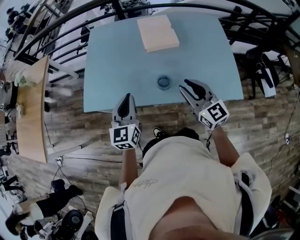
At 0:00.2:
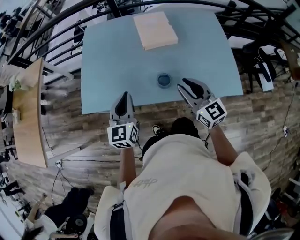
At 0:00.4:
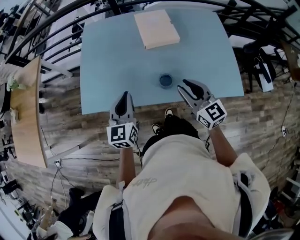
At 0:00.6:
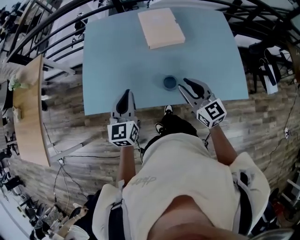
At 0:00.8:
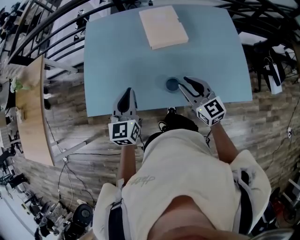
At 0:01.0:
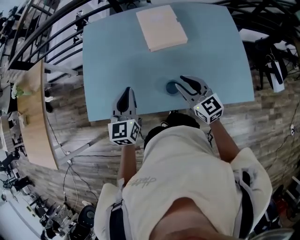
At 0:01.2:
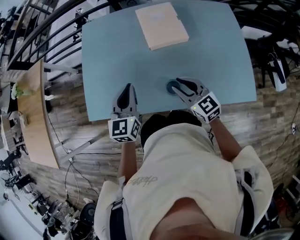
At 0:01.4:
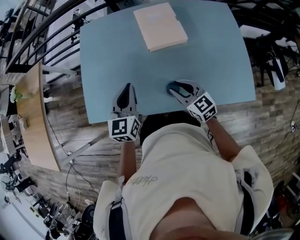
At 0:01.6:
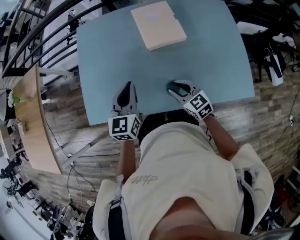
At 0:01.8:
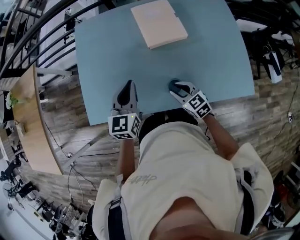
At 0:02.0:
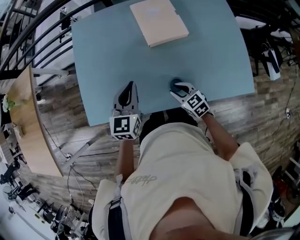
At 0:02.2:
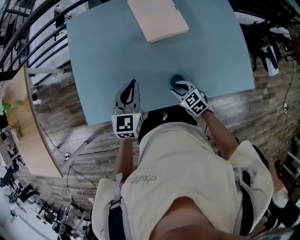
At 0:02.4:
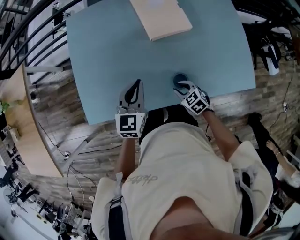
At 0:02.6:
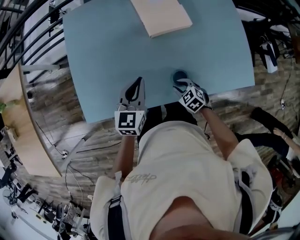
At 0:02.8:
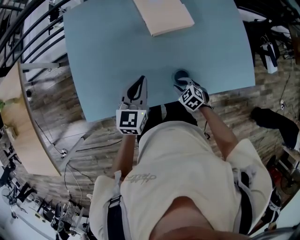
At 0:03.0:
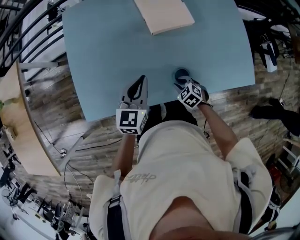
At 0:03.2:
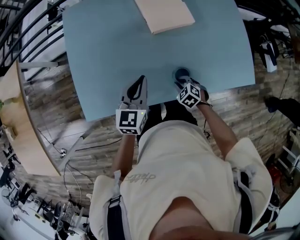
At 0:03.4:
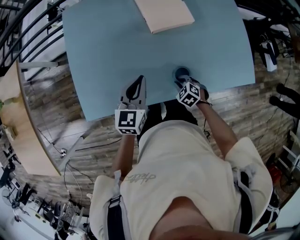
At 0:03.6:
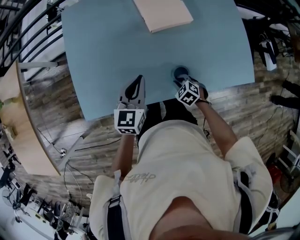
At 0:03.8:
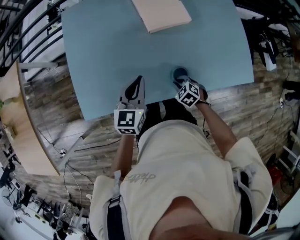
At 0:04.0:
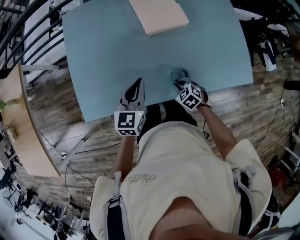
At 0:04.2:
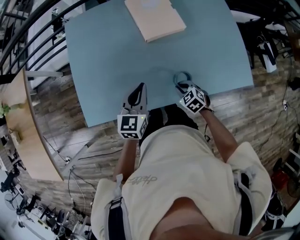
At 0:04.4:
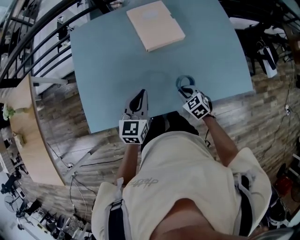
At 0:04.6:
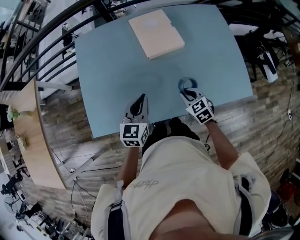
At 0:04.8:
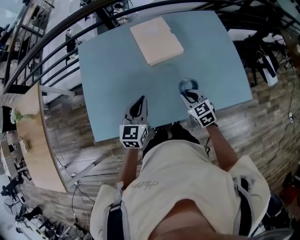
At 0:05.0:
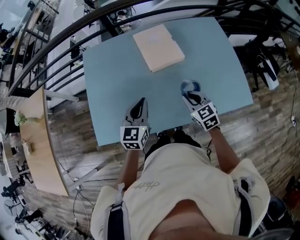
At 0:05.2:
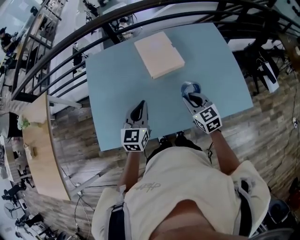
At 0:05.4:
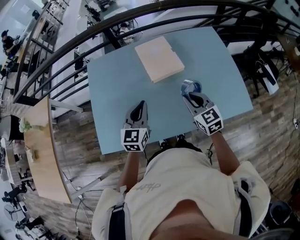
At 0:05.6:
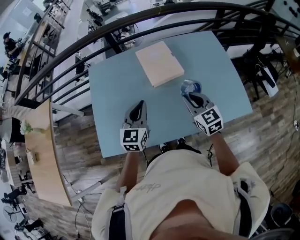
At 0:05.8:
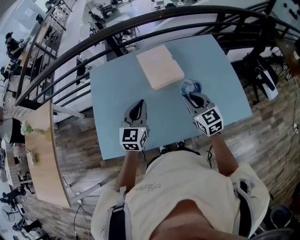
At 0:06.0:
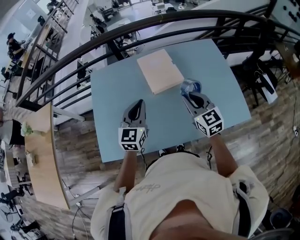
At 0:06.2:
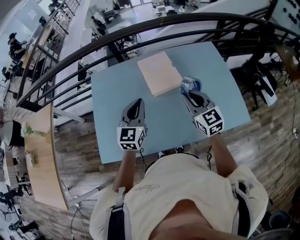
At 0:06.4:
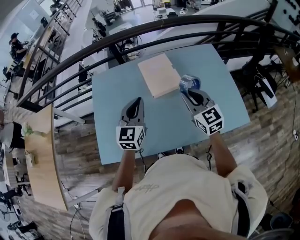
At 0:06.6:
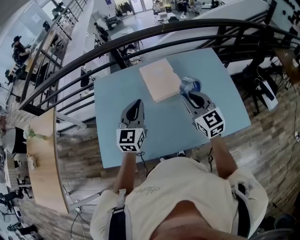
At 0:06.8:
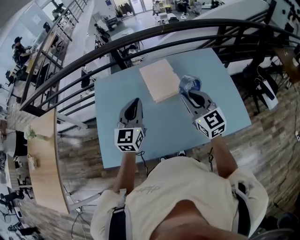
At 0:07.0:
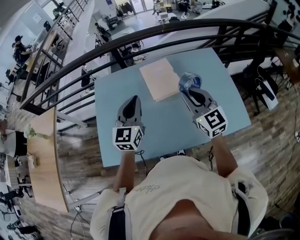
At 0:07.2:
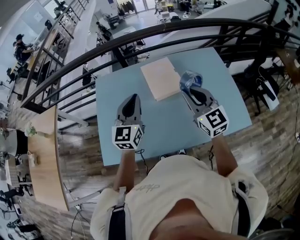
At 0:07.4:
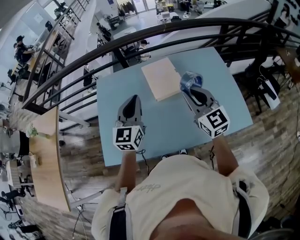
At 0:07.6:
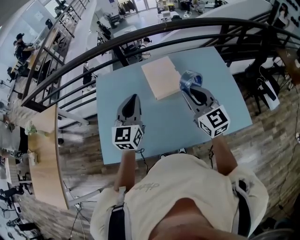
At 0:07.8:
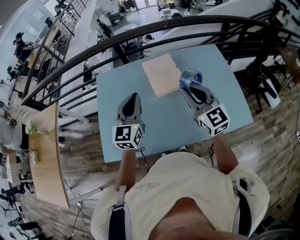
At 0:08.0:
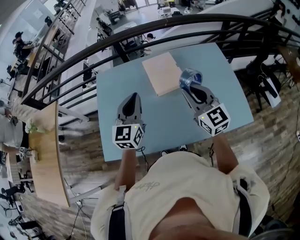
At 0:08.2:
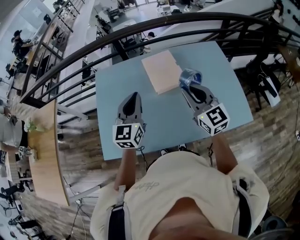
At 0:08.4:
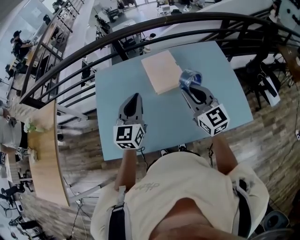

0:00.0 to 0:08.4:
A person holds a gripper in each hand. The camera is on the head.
0:00.0 to 0:01.4: The left gripper heads forward, covering approximately 15 cm. Meanwhile the right gripper shifts about 20 cm downward and forward.
0:01.4 to 0:02.8: The right gripper shifts some 20 cm downward, and angles its fingers downward, by approximately 40 degrees. The left gripper heads downward, covering some 5 cm.
0:02.8 to 0:04.2: The grippers make only small movements.
0:04.2 to 0:05.6: The right gripper goes about 25 cm upward, and tilts its fingers about 40 degrees upward, while the left gripper goes approximately 10 cm upward.
0:05.6 to 0:07.0: The grippers both shift upward by roughly 10 cm.
0:07.0 to 0:08.4: The grippers move only a little.

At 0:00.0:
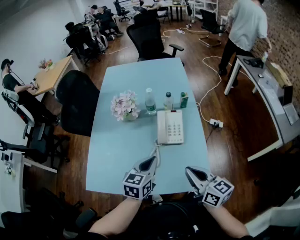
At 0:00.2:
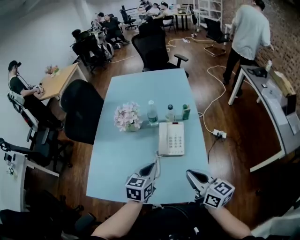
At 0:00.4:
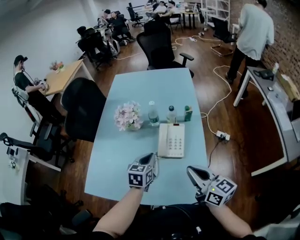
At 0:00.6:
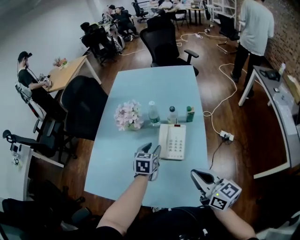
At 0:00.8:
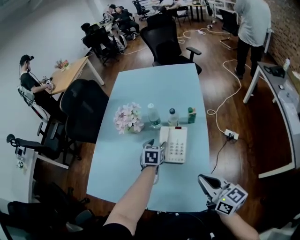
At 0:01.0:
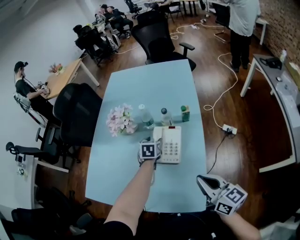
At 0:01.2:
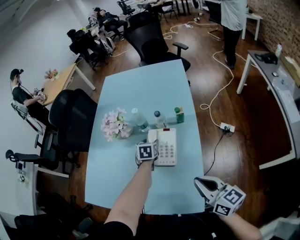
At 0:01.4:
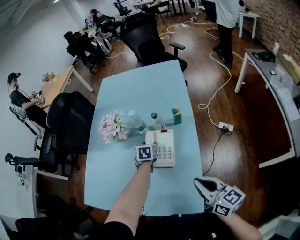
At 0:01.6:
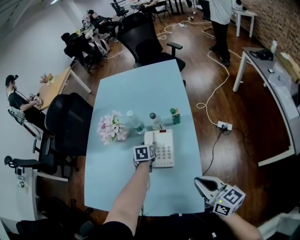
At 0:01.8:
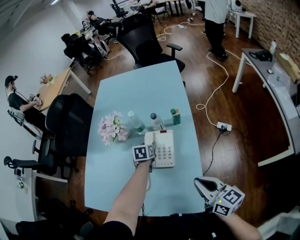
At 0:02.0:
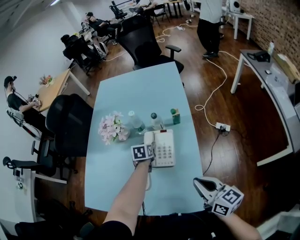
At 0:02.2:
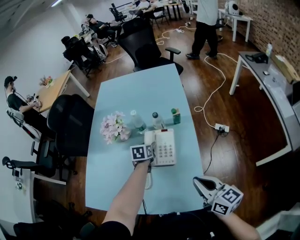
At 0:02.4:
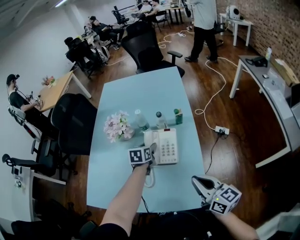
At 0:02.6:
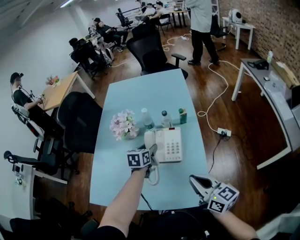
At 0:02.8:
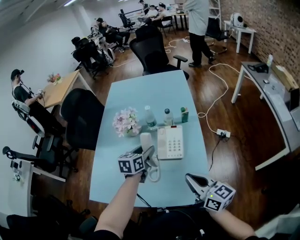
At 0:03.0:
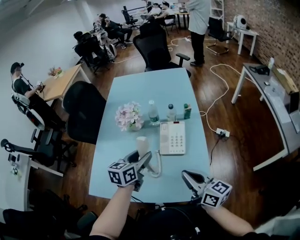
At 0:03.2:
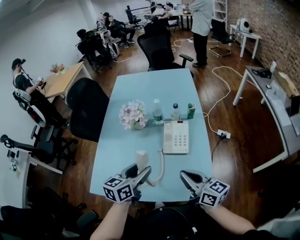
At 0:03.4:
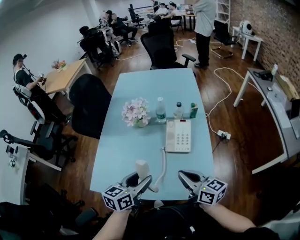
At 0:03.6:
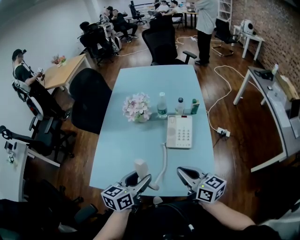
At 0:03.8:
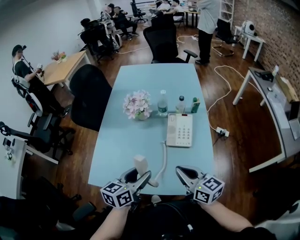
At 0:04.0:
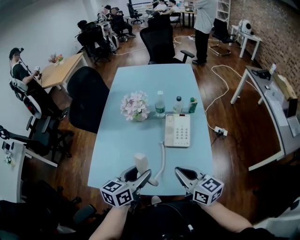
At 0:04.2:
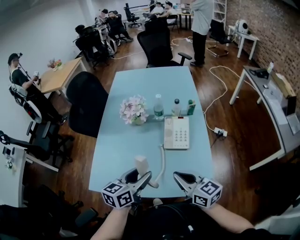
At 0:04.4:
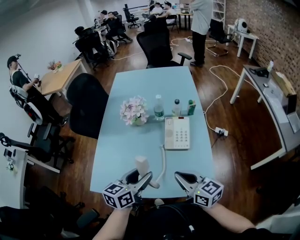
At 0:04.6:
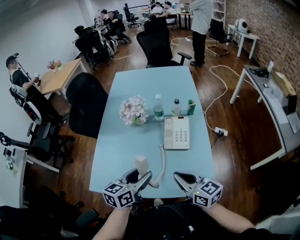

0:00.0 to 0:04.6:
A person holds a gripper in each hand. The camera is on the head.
0:00.0 to 0:01.6: The left gripper heads forward, downward and to the right, covering roughly 30 cm, changes its angle by roughly 30 degrees, and opens up, while the right gripper shifts roughly 15 cm to the right.
0:01.6 to 0:03.0: The left gripper travels upward, backward and to the left by roughly 30 cm, and rotates some 30 degrees, while the right gripper shifts roughly 15 cm to the left.
0:03.0 to 0:04.6: The left gripper travels backward by approximately 10 cm. The right gripper shifts some 10 cm to the left.

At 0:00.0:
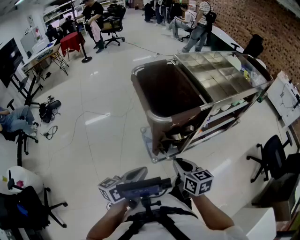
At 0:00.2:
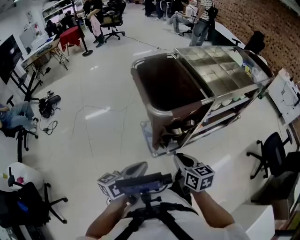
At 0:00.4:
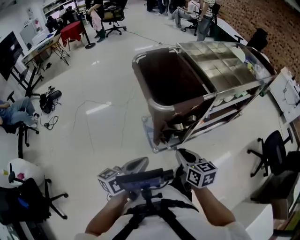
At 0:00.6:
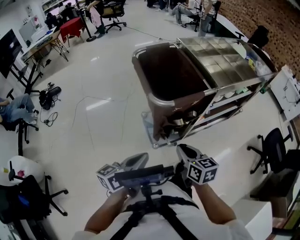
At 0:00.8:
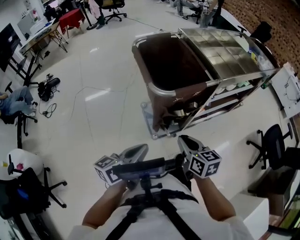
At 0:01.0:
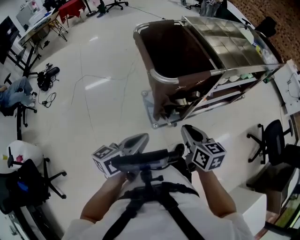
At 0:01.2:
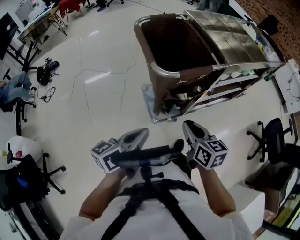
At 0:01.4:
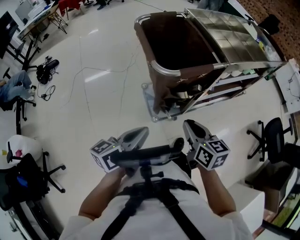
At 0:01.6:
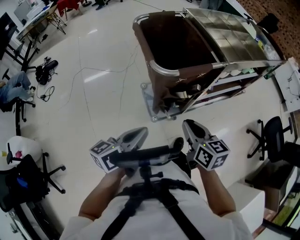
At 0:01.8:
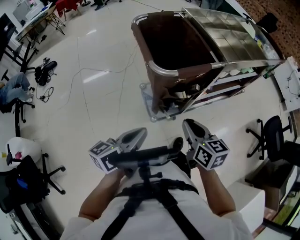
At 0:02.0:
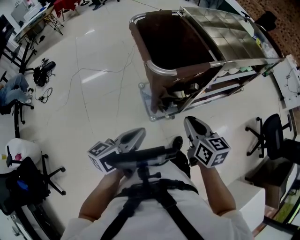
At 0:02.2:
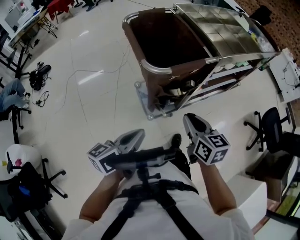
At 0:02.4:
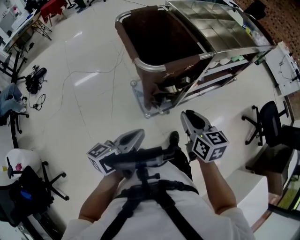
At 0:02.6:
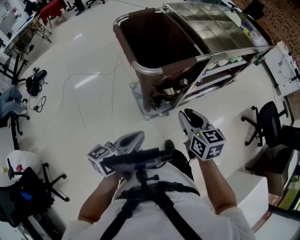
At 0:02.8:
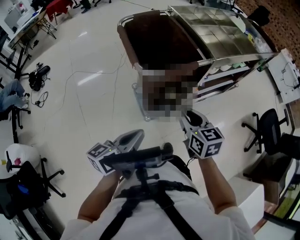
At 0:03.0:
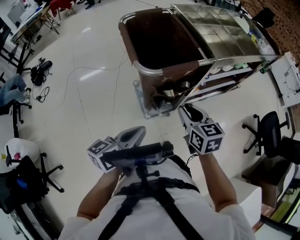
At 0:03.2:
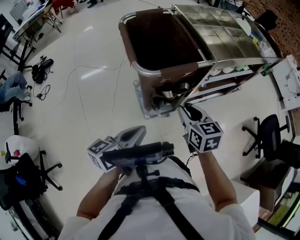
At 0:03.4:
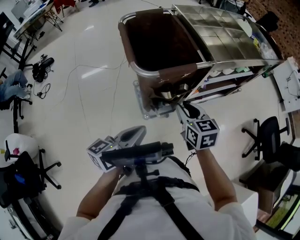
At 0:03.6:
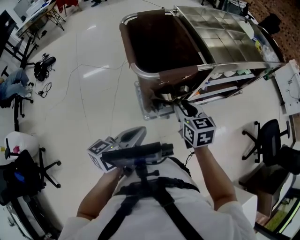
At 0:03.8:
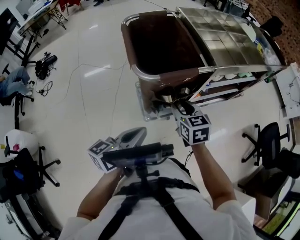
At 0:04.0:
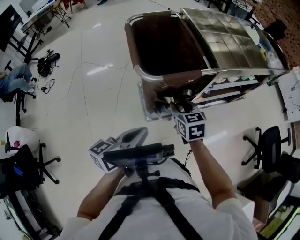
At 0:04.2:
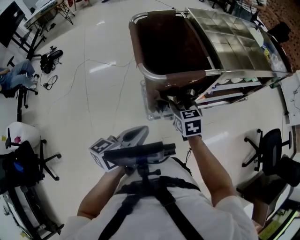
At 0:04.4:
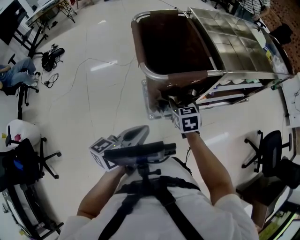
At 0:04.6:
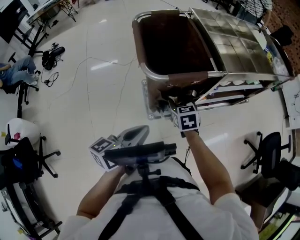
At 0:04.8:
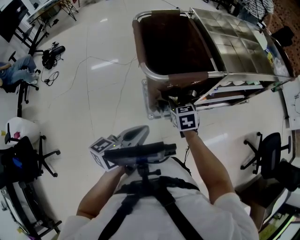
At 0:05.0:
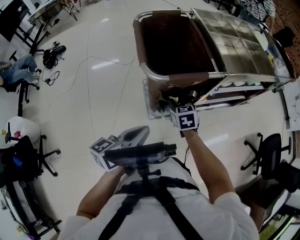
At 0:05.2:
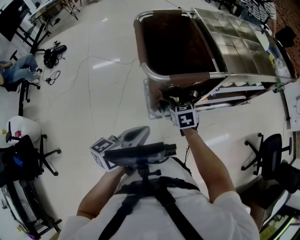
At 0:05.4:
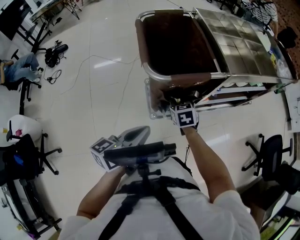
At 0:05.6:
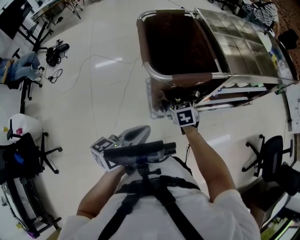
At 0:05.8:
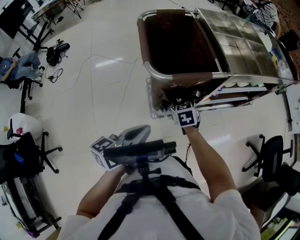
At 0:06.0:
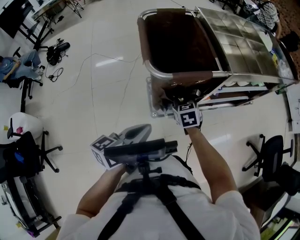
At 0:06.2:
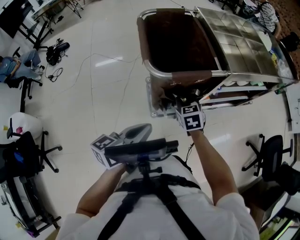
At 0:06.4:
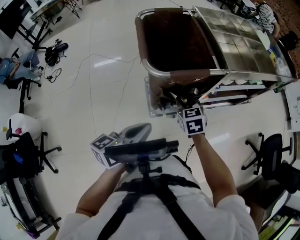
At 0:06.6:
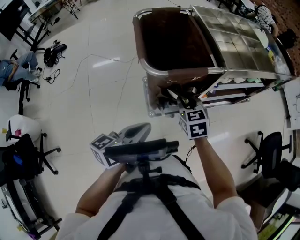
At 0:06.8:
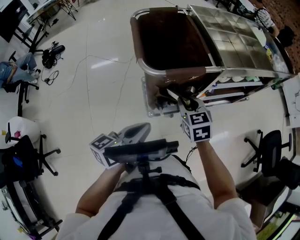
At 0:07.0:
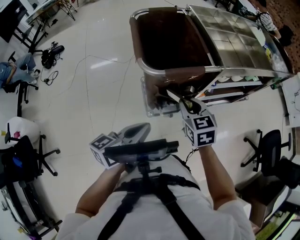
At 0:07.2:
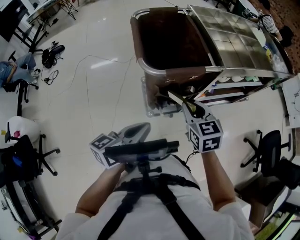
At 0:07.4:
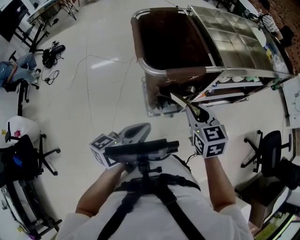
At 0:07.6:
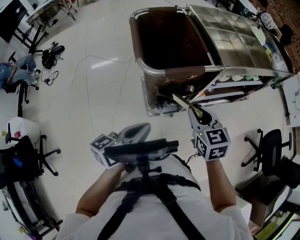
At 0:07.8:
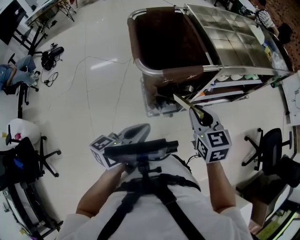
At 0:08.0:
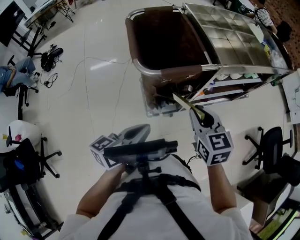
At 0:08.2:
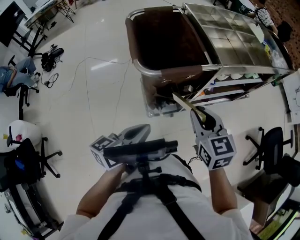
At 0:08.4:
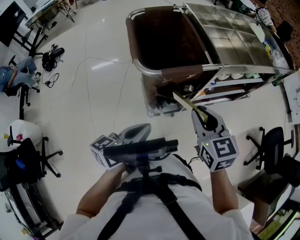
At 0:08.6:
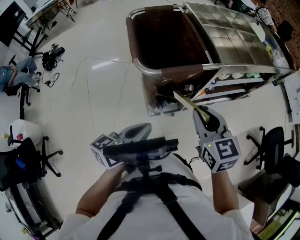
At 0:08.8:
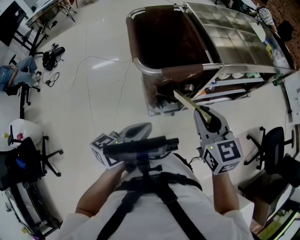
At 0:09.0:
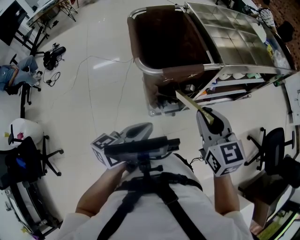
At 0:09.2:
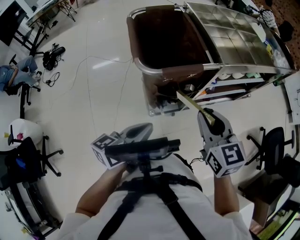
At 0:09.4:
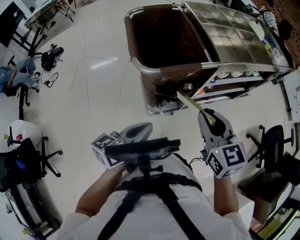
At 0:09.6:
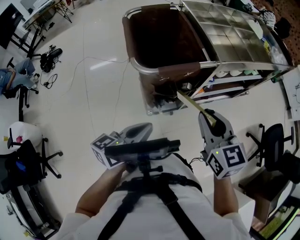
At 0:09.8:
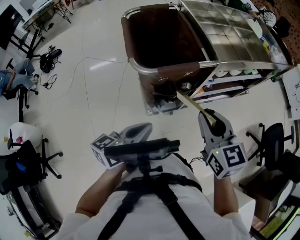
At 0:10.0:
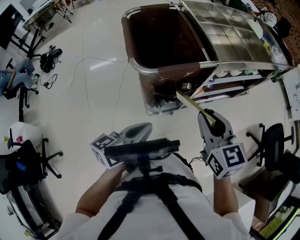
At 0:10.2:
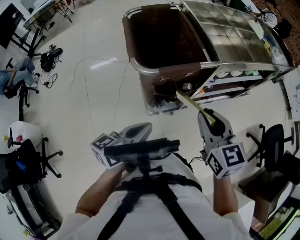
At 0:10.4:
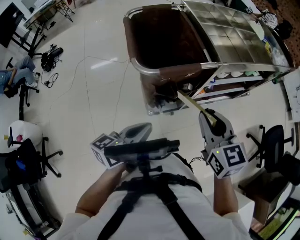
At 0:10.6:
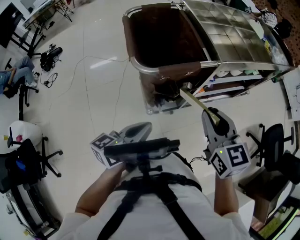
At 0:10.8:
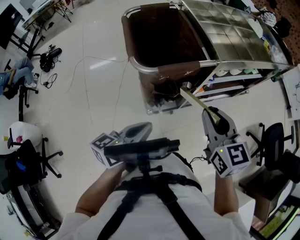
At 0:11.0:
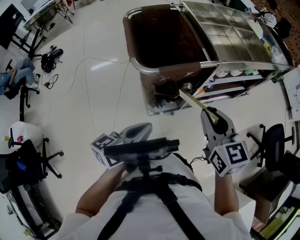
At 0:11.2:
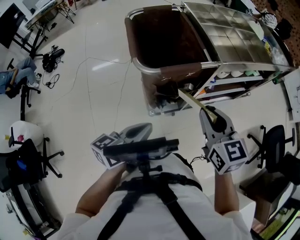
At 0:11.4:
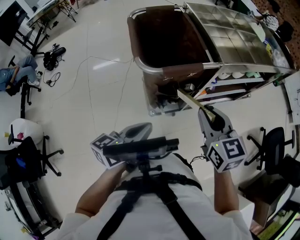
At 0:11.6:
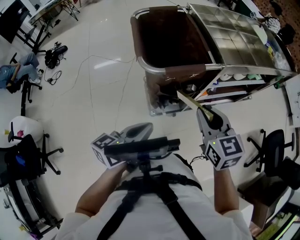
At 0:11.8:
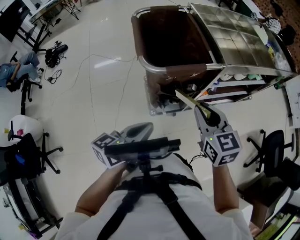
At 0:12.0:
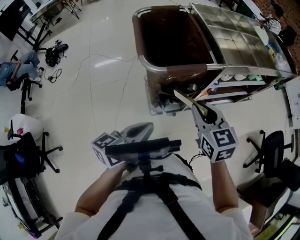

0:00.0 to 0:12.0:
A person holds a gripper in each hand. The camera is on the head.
0:00.0 to 0:01.6: There are only small adjustments of the grippers.
0:01.6 to 0:03.0: The right gripper travels forward by some 5 cm.
0:03.0 to 0:04.4: The right gripper moves downward and forward, roughly 15 cm.
0:04.4 to 0:06.0: The right gripper closes up.
0:06.0 to 0:07.6: The right gripper goes some 20 cm upward, backward and to the right.
0:07.6 to 0:09.0: The right gripper heads upward, covering some 5 cm.
0:09.0 to 0:10.4: The grippers stay close to where they were, moving slightly.
0:10.4 to 0:12.0: The right gripper changes place by roughly 5 cm.
